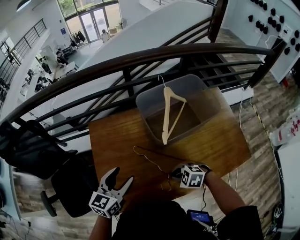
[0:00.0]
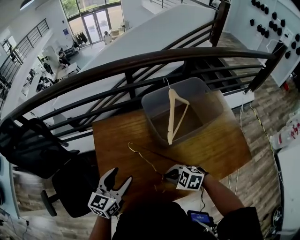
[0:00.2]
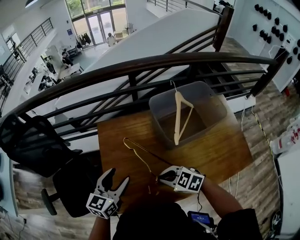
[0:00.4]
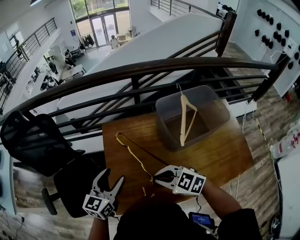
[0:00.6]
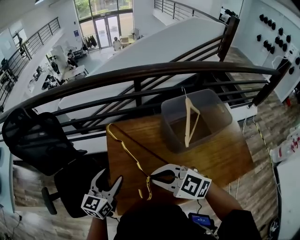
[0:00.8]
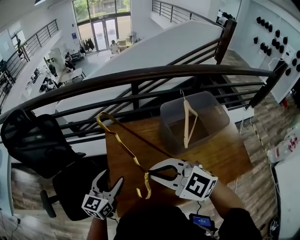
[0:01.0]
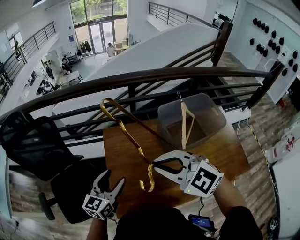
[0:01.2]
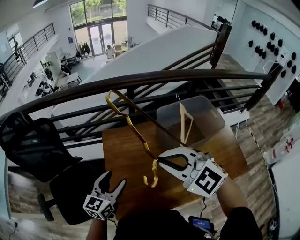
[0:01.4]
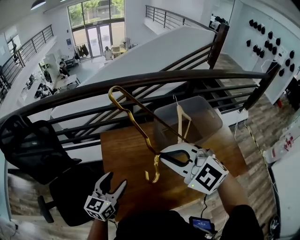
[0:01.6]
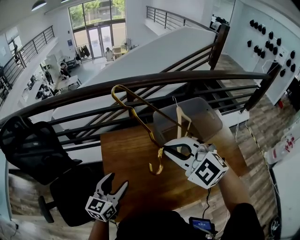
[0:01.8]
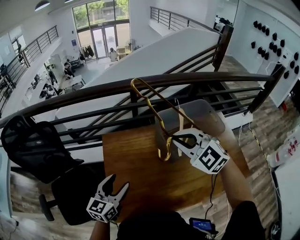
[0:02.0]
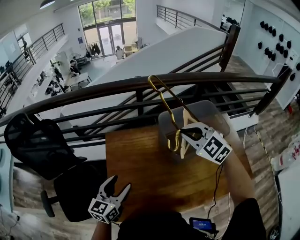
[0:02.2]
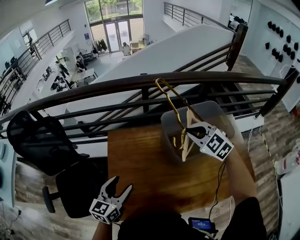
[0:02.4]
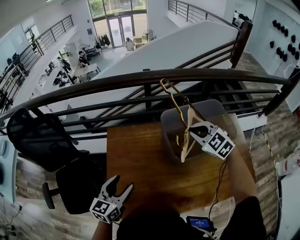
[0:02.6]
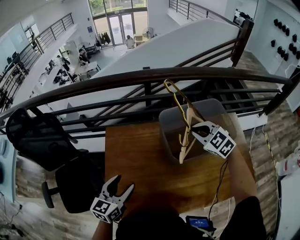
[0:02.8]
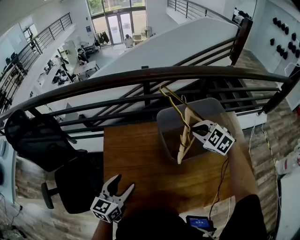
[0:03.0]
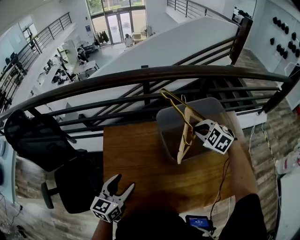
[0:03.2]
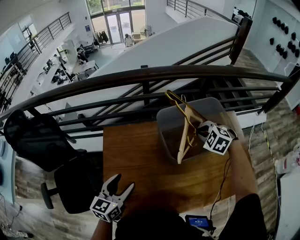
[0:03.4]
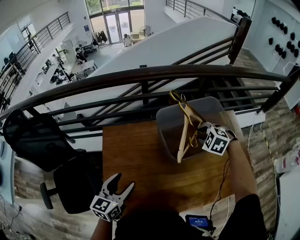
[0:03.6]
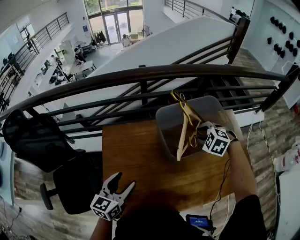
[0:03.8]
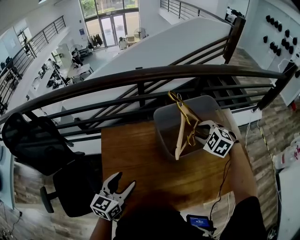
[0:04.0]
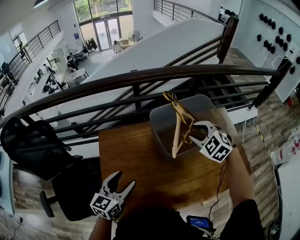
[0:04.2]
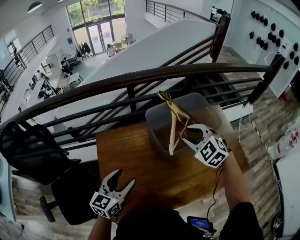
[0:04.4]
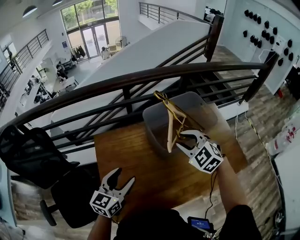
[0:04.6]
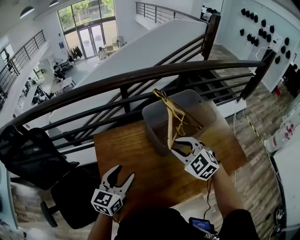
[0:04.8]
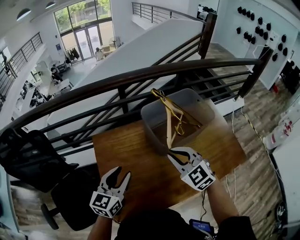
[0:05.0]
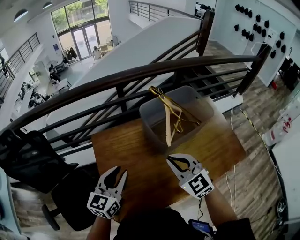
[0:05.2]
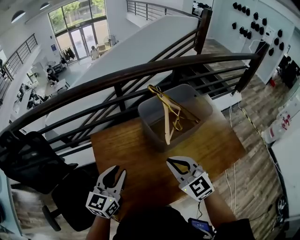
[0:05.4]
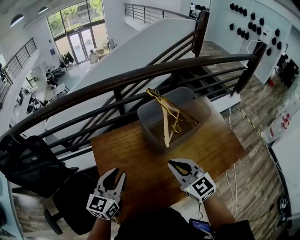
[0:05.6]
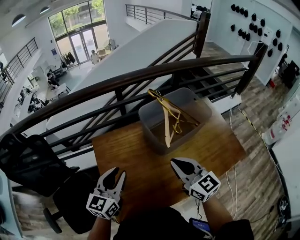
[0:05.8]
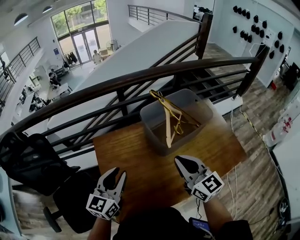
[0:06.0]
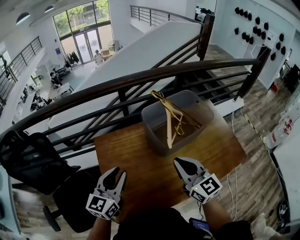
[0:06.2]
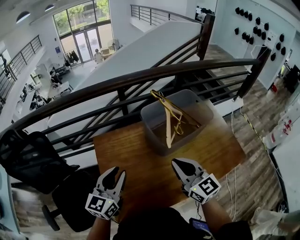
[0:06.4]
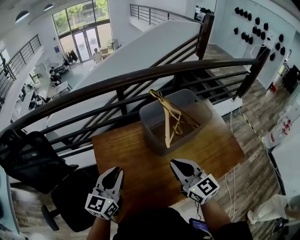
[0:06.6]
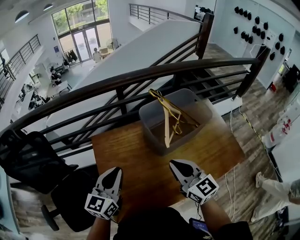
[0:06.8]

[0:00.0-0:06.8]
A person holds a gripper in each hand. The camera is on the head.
0:00.0 to 0:01.4: The right gripper goes about 35 cm upward and forward, and angles its fingers upward, by roughly 30 degrees. The left gripper goes some 10 cm to the left.
0:01.4 to 0:02.8: The left gripper is displaced to the right by approximately 5 cm. Meanwhile the right gripper travels to the right, forward and downward by some 30 cm.
0:02.8 to 0:04.0: The right gripper moves approximately 5 cm, changes its angle by about 20 degrees, and opens up.
0:04.0 to 0:05.4: The left gripper goes approximately 5 cm upward, and closes; the right gripper travels backward and to the left by approximately 25 cm, points its fingers roughly 40 degrees further upward, and closes up.
0:05.4 to 0:06.8: The right gripper changes its angle by roughly 20 degrees.

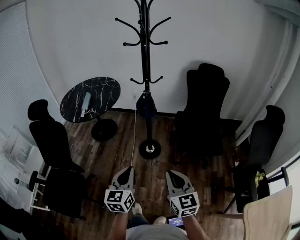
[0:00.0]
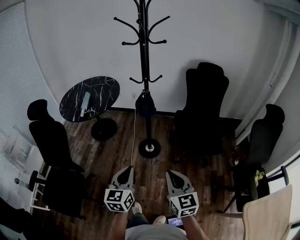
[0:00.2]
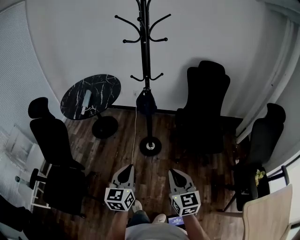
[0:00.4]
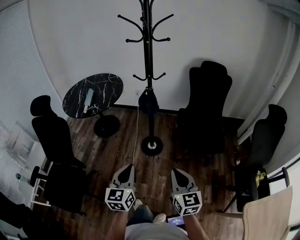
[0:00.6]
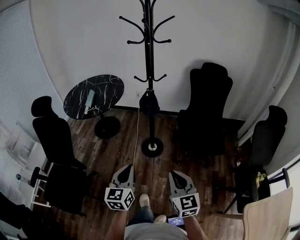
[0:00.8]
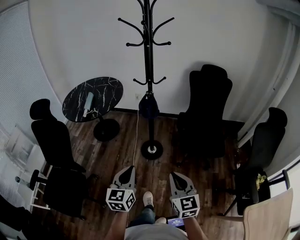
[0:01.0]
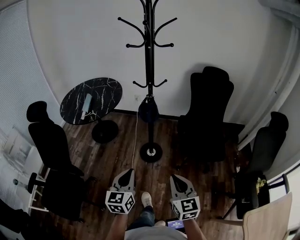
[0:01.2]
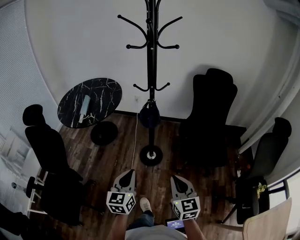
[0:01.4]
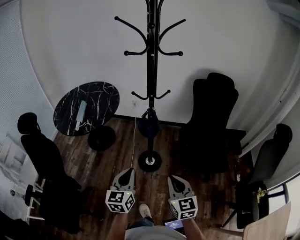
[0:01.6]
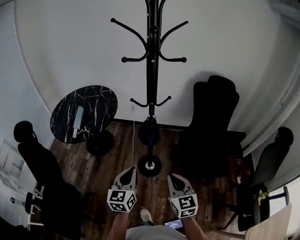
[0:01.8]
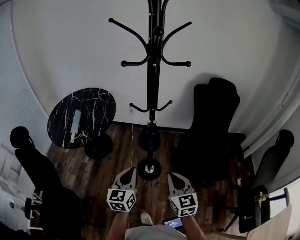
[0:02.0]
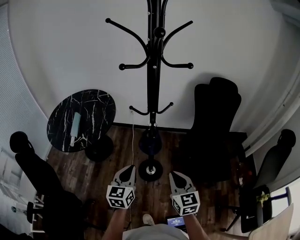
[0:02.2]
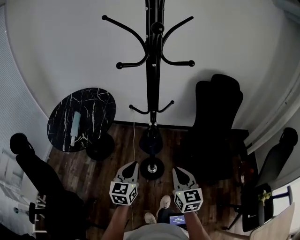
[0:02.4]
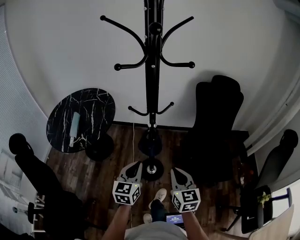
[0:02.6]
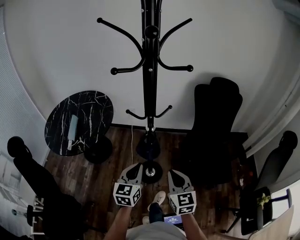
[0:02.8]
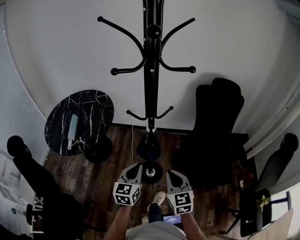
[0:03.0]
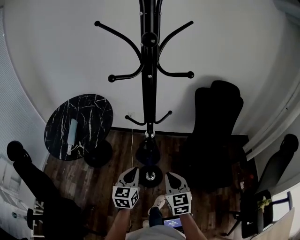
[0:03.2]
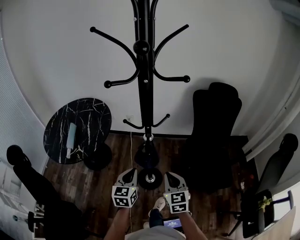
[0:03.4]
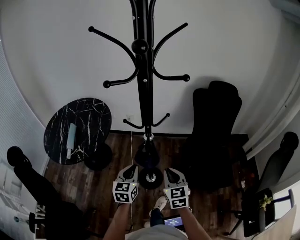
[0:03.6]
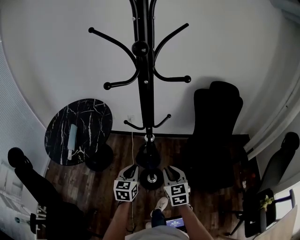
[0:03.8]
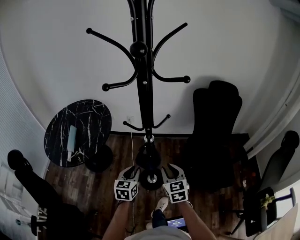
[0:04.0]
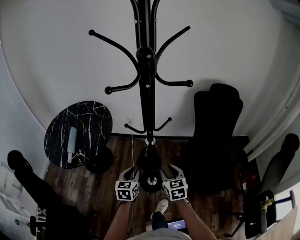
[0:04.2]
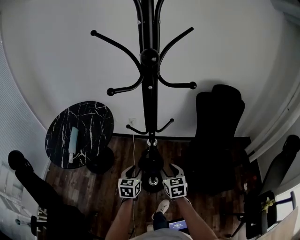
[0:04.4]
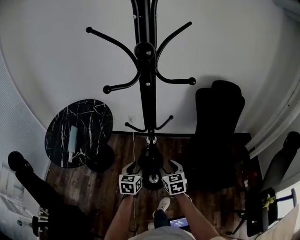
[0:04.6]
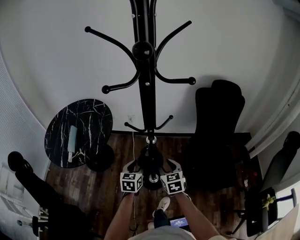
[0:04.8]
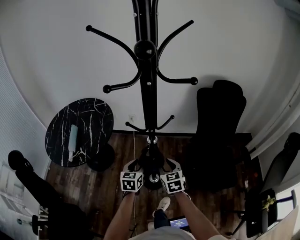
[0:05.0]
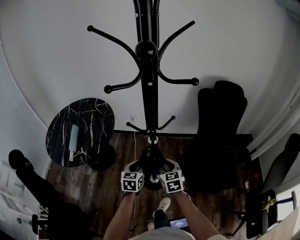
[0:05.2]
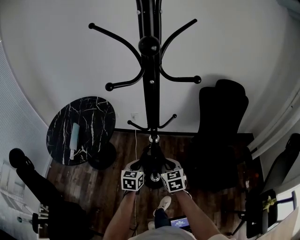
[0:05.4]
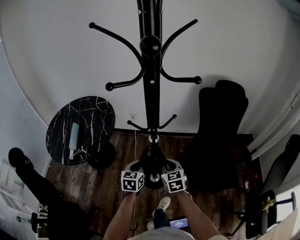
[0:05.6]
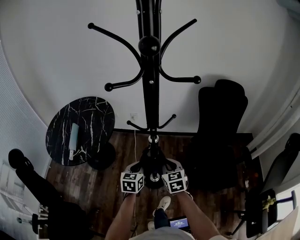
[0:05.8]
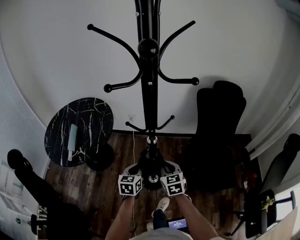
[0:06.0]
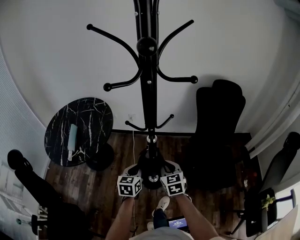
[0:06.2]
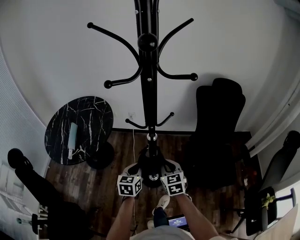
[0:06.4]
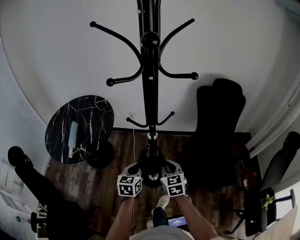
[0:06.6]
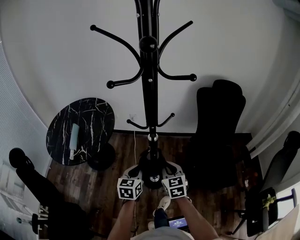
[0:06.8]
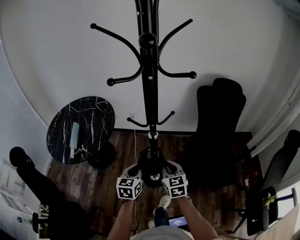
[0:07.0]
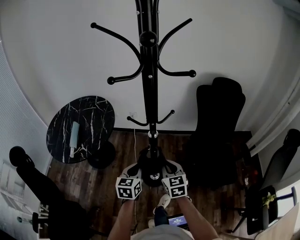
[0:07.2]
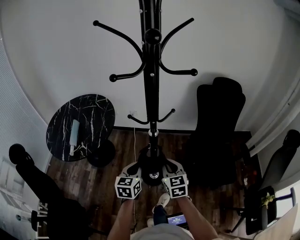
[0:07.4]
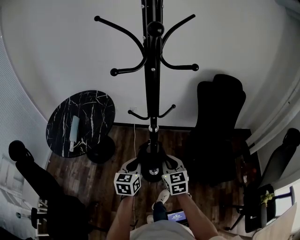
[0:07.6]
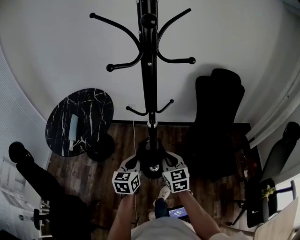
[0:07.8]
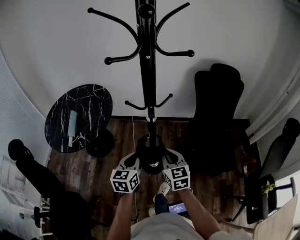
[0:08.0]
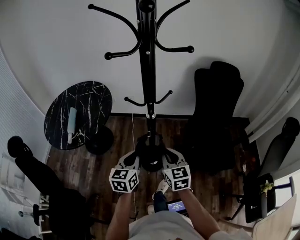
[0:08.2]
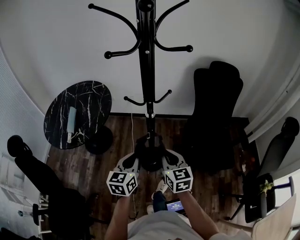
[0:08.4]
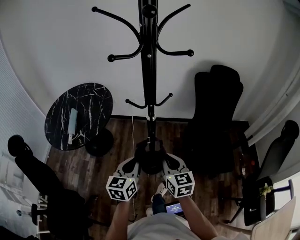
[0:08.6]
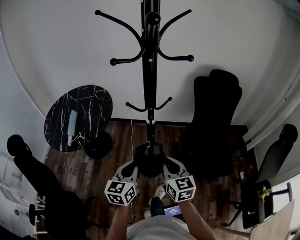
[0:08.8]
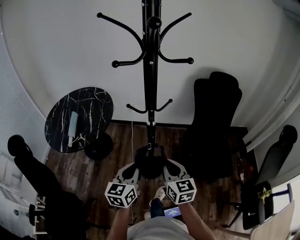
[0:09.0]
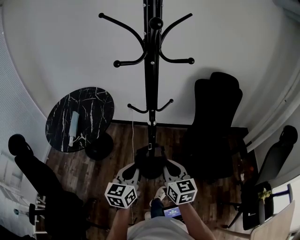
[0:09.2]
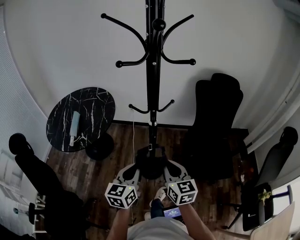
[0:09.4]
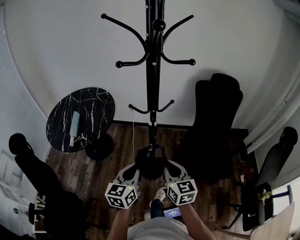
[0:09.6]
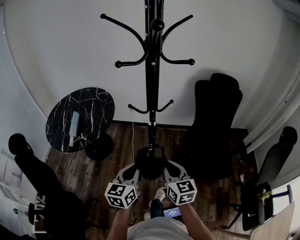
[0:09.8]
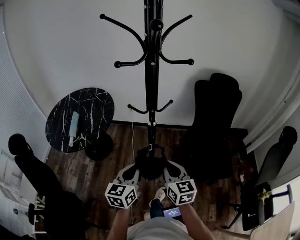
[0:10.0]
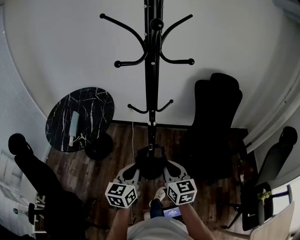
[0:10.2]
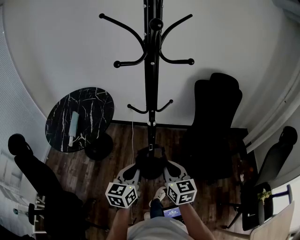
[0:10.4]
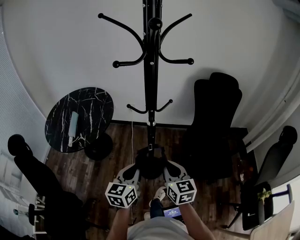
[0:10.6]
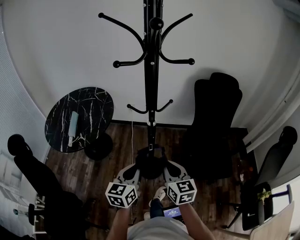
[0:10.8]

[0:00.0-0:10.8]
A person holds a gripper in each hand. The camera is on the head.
0:00.0 to 0:01.6: Both grippers move forward, about 20 cm.
0:01.6 to 0:03.0: The two grippers go approximately 20 cm forward.
0:03.0 to 0:04.6: The grippers both shift forward and downward by approximately 15 cm. The right gripper opens up, while the left gripper opens its fingers.
0:04.6 to 0:06.2: The left gripper closes; the right gripper closes.
0:06.2 to 0:07.8: The left gripper shifts about 5 cm backward and upward. The right gripper moves backward, some 5 cm.
0:07.8 to 0:09.2: The right gripper moves backward, some 5 cm; the left gripper is displaced backward and upward by approximately 10 cm.
0:09.2 to 0:10.8: The two grippers keep their place.

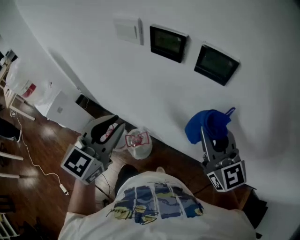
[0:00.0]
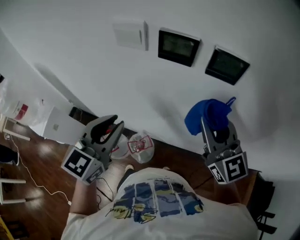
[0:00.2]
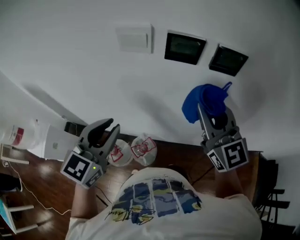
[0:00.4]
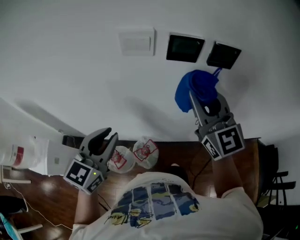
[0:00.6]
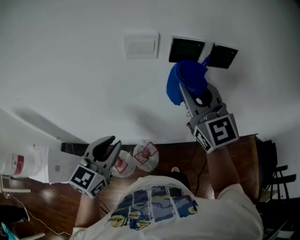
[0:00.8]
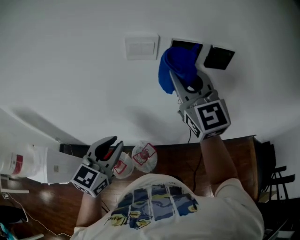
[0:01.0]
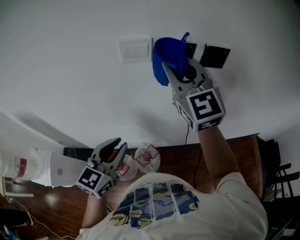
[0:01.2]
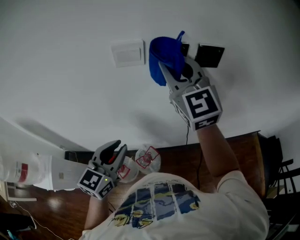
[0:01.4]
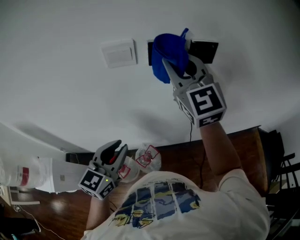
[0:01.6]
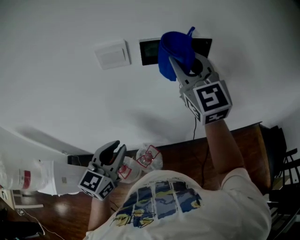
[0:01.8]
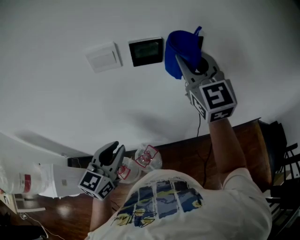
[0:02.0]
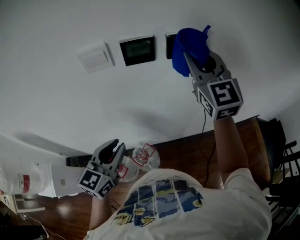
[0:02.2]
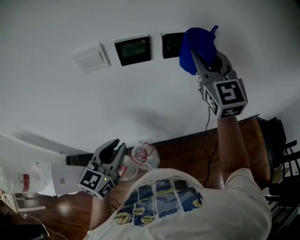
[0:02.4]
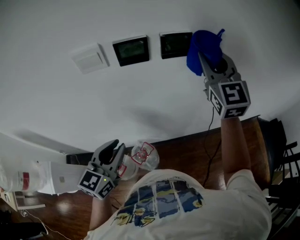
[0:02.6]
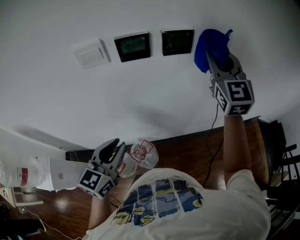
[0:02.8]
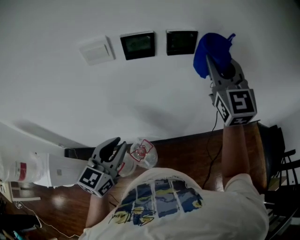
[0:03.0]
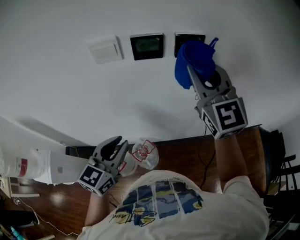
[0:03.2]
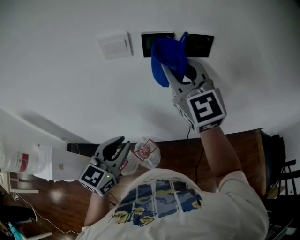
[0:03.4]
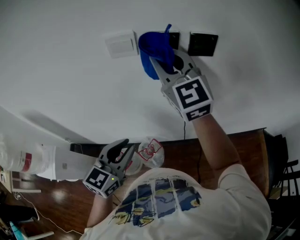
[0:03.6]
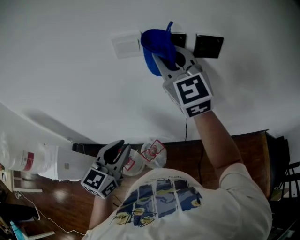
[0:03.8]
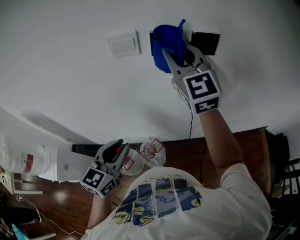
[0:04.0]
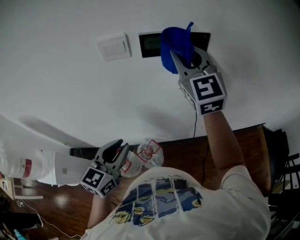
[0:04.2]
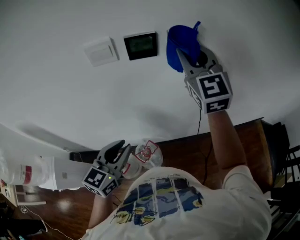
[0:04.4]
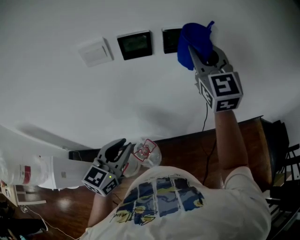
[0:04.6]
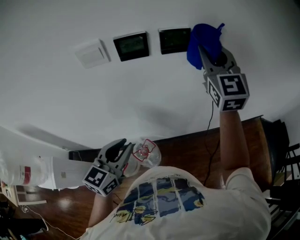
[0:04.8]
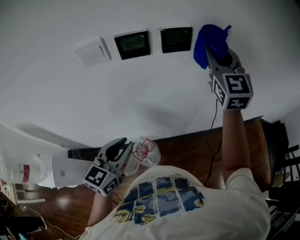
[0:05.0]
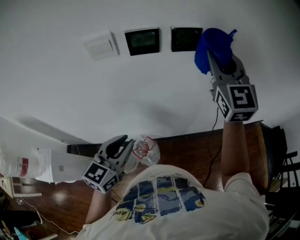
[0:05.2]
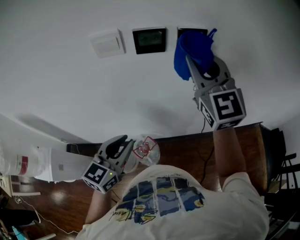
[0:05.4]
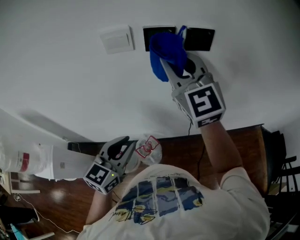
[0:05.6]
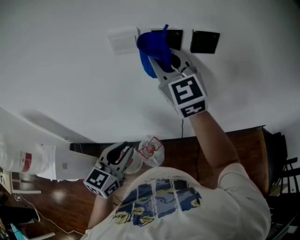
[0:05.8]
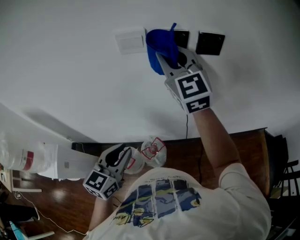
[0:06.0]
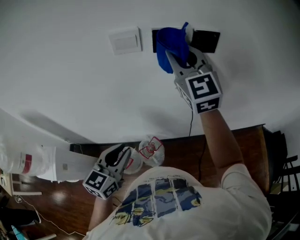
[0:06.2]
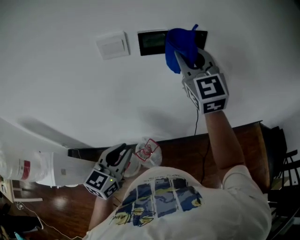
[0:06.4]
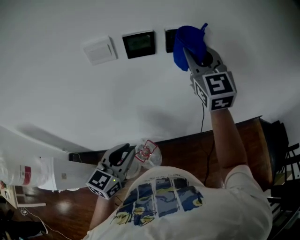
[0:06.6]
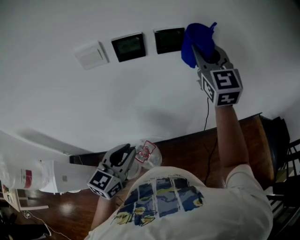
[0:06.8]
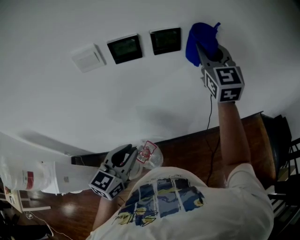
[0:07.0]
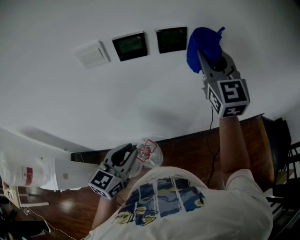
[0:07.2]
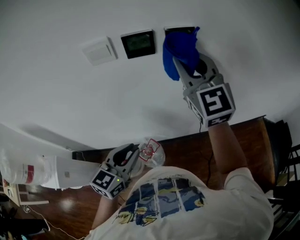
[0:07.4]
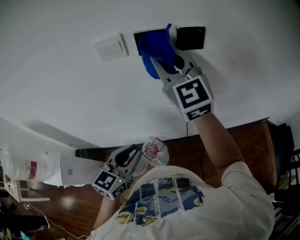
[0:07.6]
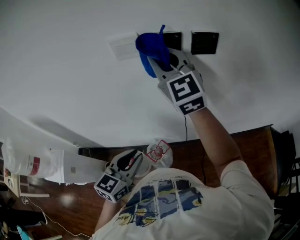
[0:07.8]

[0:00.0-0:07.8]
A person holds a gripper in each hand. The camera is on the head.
0:00.0 to 0:01.6: The right gripper shifts by some 20 cm, and swivels roughly 40 degrees, while the left gripper shifts by roughly 15 cm, and rotates about 30 degrees.
0:01.6 to 0:03.2: The right gripper moves to the right, about 10 cm; the left gripper moves to the right, about 5 cm.
0:03.2 to 0:04.6: The right gripper travels forward by roughly 5 cm, and moves approximately 15 cm to the left and comes back.
0:04.6 to 0:06.2: The right gripper goes left and right, about 25 cm each way, reversing 2 times. Meanwhile the left gripper travels to the left by roughly 5 cm.
0:06.2 to 0:07.8: The right gripper travels to the right and back again, some 20 cm each way. Meanwhile the left gripper moves roughly 10 cm to the right and comes back.
